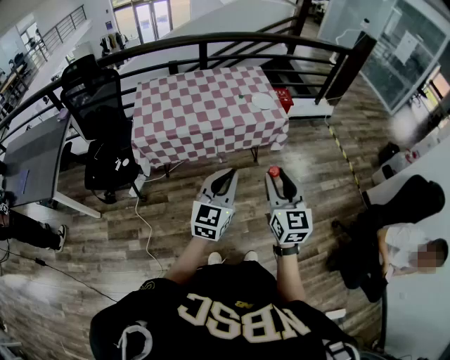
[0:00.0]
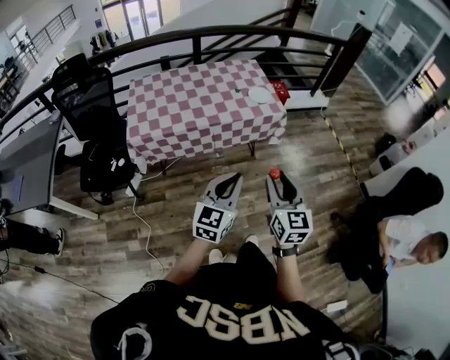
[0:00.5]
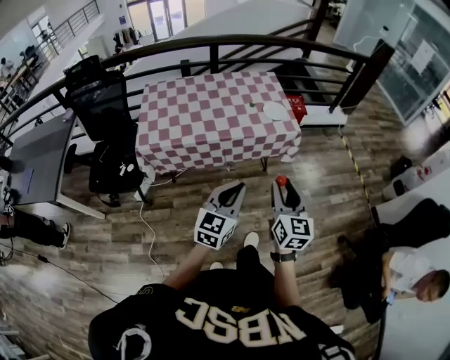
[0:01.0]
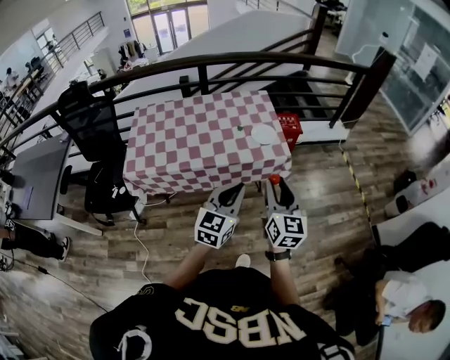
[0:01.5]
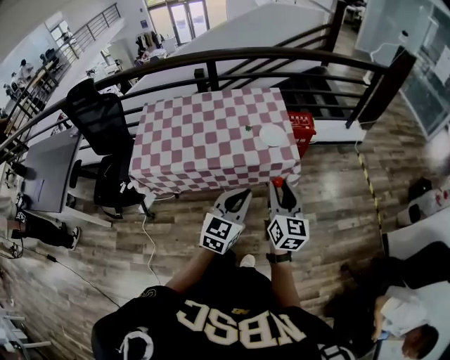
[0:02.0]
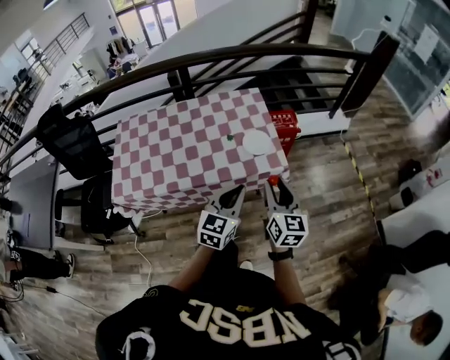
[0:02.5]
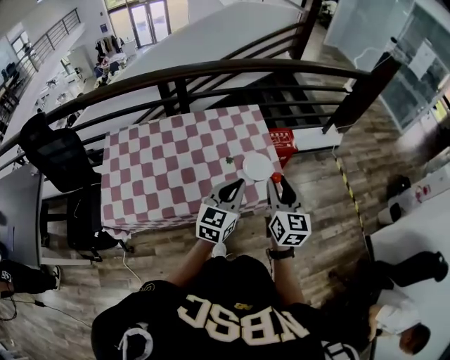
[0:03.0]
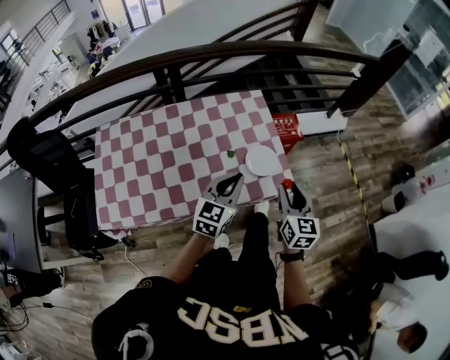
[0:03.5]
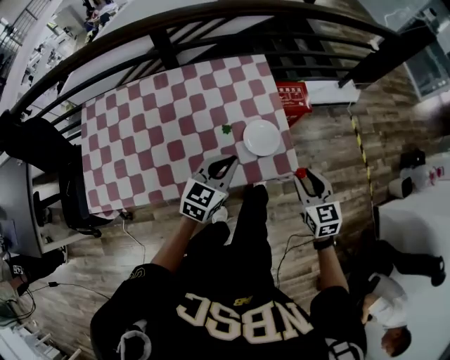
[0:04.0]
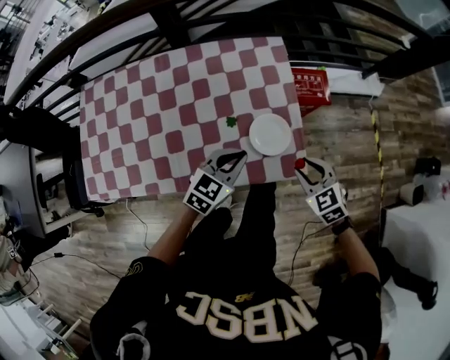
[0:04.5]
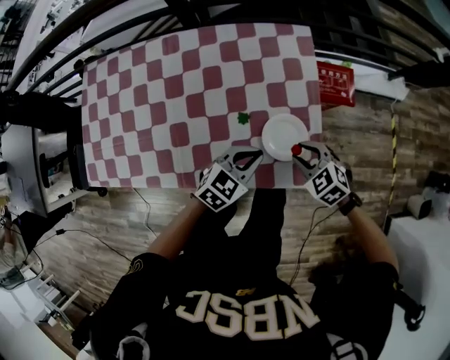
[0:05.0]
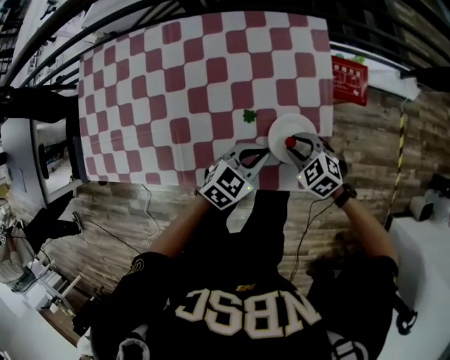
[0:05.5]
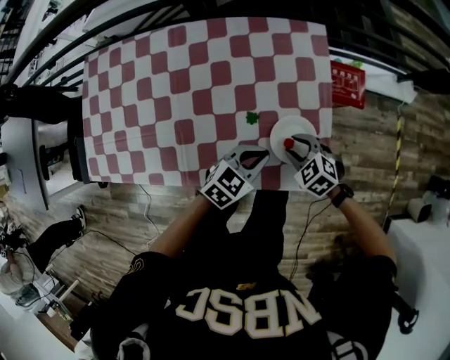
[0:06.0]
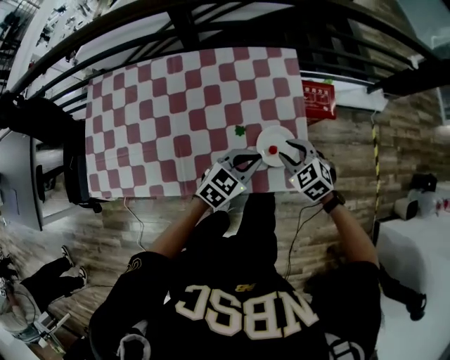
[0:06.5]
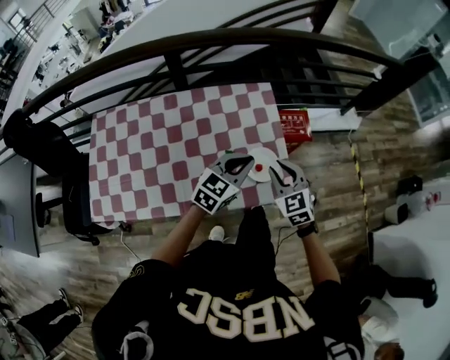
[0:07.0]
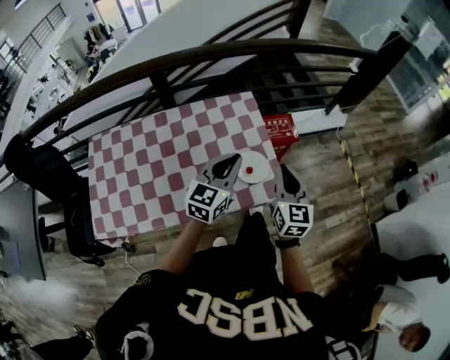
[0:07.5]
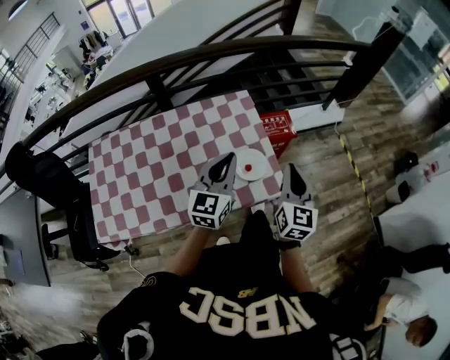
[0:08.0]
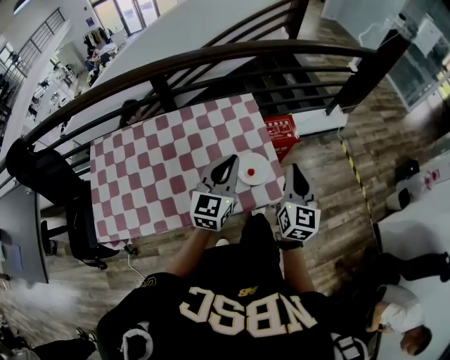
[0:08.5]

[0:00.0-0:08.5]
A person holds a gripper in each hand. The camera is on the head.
0:00.0 to 0:02.0: The left gripper heads forward and to the right, covering about 30 cm. The right gripper heads forward, covering some 30 cm.
0:02.0 to 0:04.0: Both grippers travel together forward and downward, roughly 35 cm. The right gripper rotates about 30 degrees.
0:04.0 to 0:06.5: The left gripper shifts some 10 cm downward and forward. The right gripper shifts approximately 20 cm forward, downward and to the left, and rotates roughly 40 degrees.
0:06.5 to 0:08.5: The right gripper moves upward and to the right, about 25 cm, angles its fingers upward, by approximately 50 degrees, and closes; the left gripper heads upward, covering approximately 20 cm, and rotates about 30 degrees.

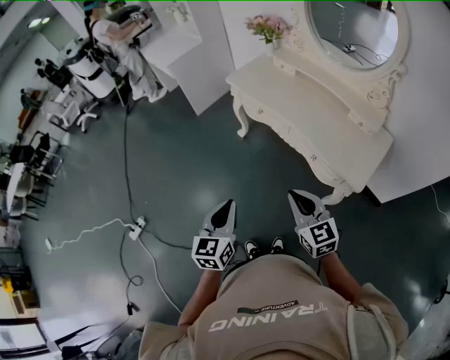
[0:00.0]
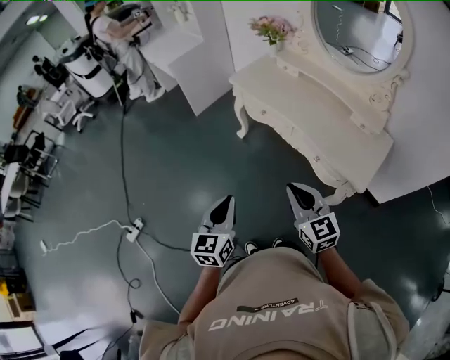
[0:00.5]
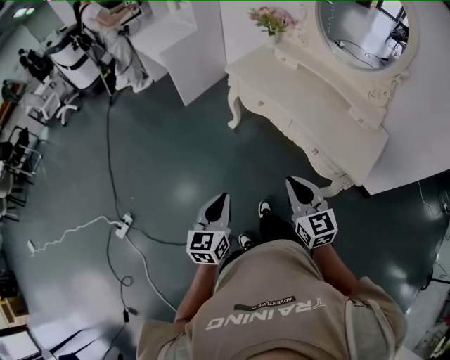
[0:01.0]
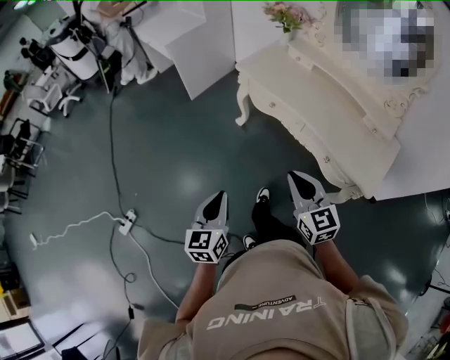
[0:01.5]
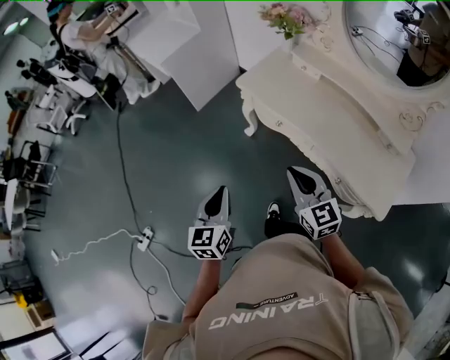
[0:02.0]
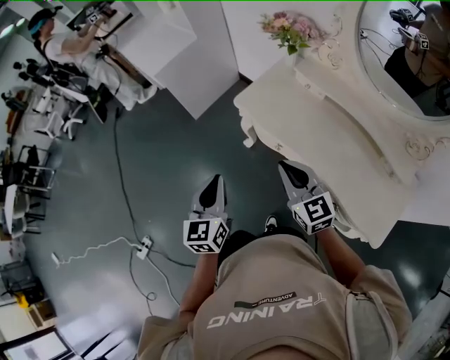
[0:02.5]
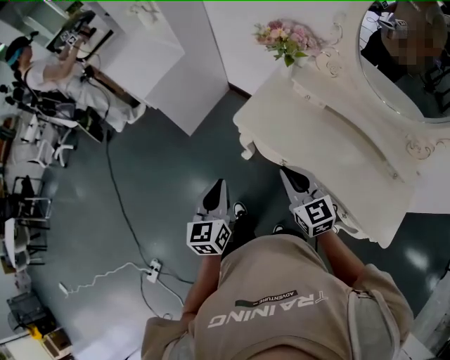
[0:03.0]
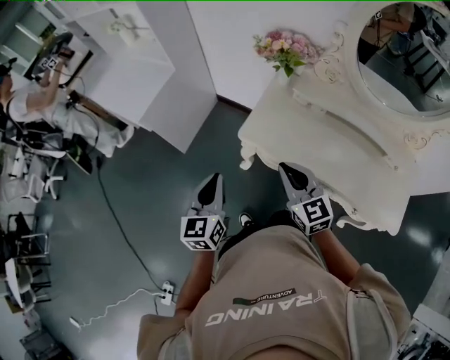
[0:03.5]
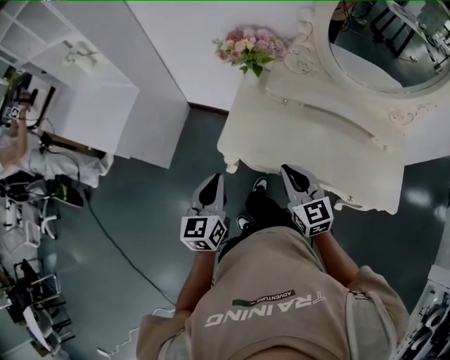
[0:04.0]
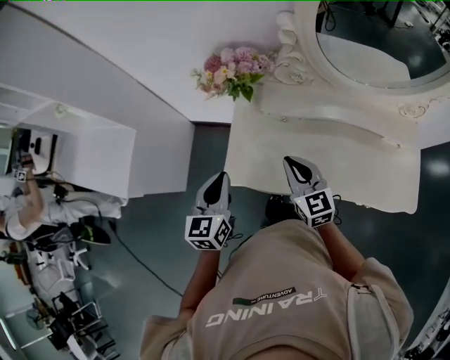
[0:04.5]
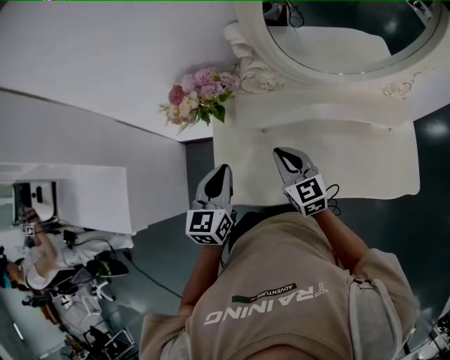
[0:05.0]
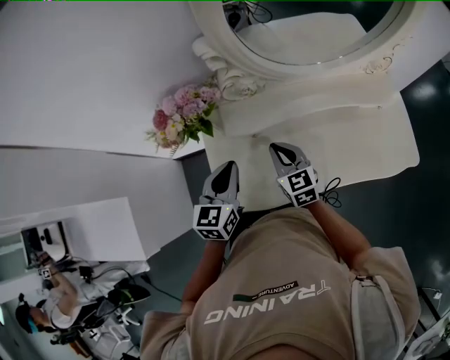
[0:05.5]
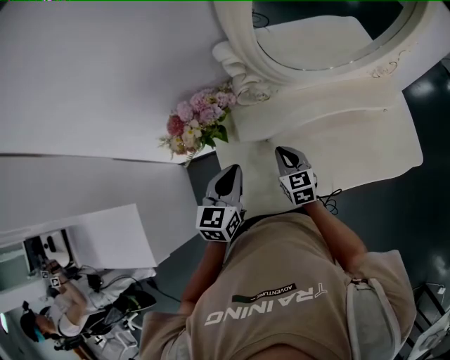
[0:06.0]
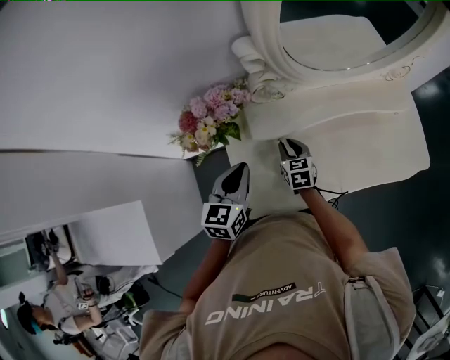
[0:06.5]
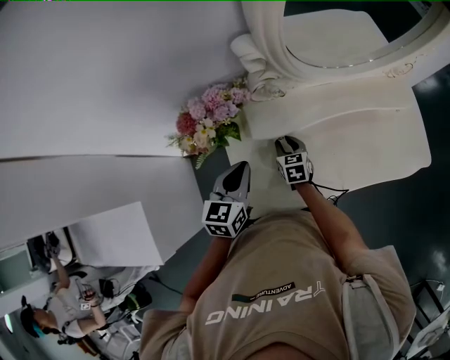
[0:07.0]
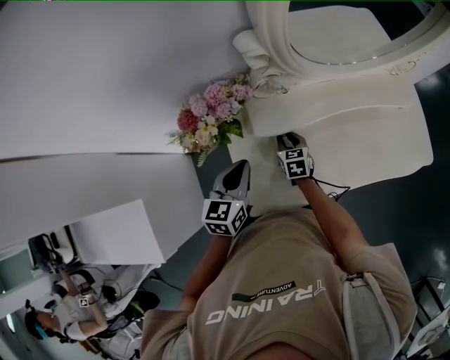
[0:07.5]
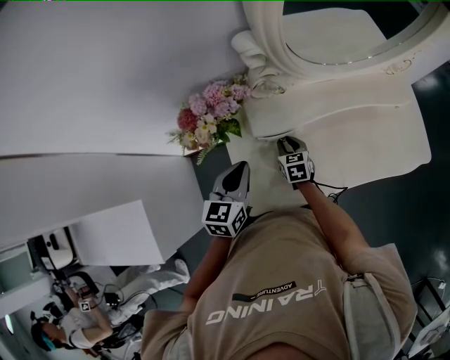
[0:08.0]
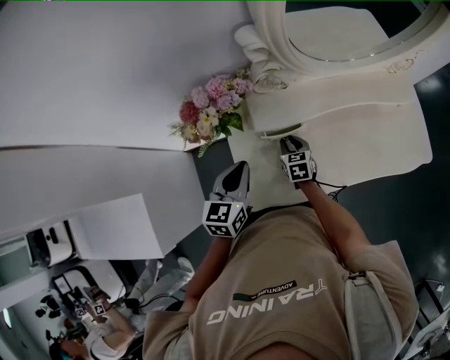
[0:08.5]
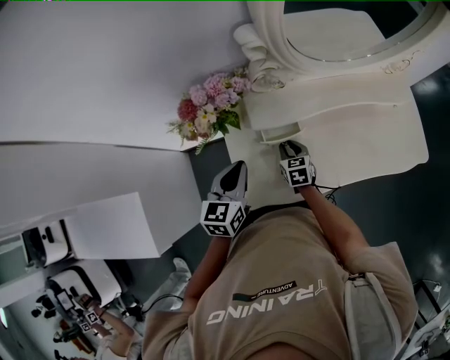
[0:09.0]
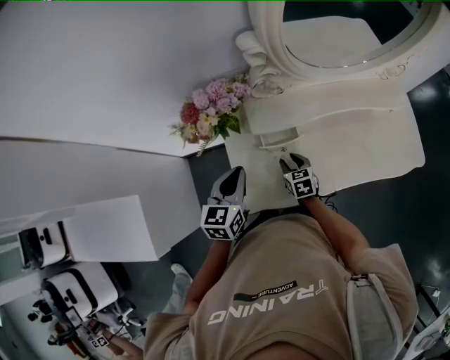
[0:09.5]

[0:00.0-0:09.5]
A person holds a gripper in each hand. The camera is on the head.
0:00.0 to 0:02.0: The grippers both shift forward by roughly 25 cm.
0:02.0 to 0:04.0: The left gripper changes place by roughly 40 cm, and rotates some 30 degrees. The right gripper moves some 30 cm, and rotates roughly 30 degrees.
0:04.0 to 0:05.5: The left gripper shifts by some 30 cm, and turns by some 40 degrees; the right gripper moves about 25 cm, and rotates approximately 30 degrees.
0:05.5 to 0:07.5: The right gripper goes about 15 cm downward and forward, rotates roughly 20 degrees, and opens up; the left gripper is displaced to the left by some 5 cm.
0:07.5 to 0:09.5: The right gripper moves backward, approximately 10 cm.

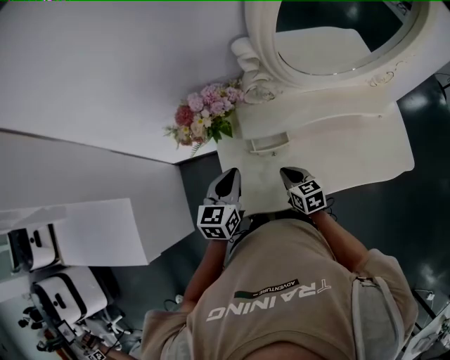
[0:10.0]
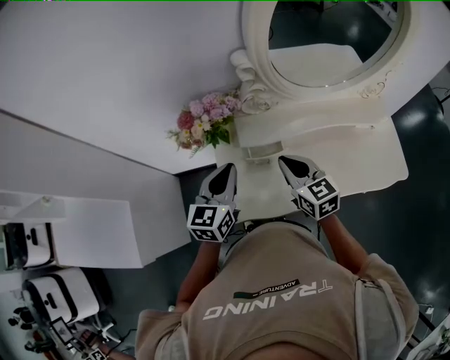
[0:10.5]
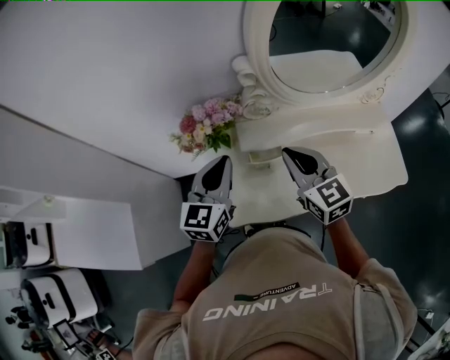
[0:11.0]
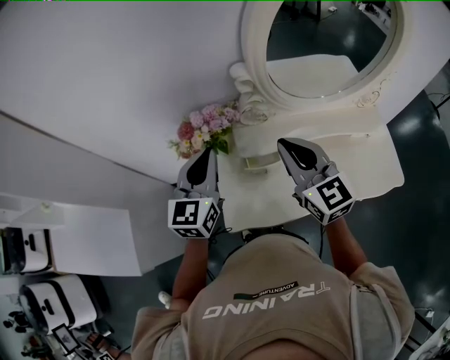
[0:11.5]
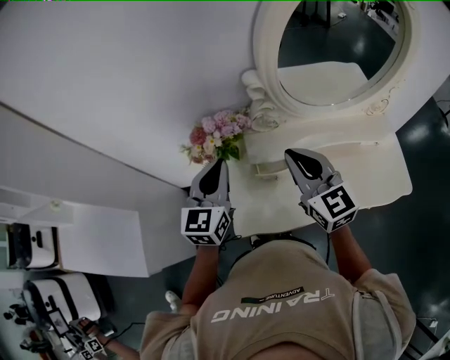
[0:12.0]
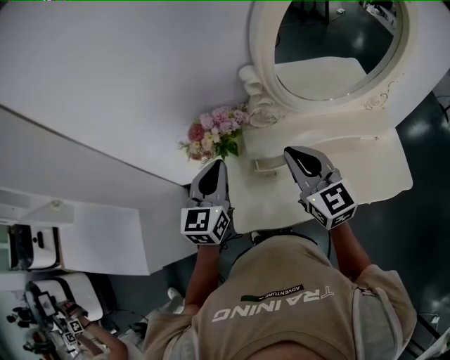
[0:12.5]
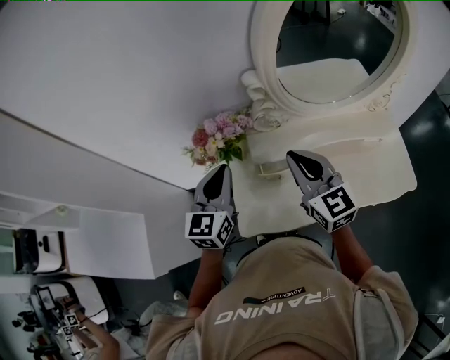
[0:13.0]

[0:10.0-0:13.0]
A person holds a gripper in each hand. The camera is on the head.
0:10.0 to 0:11.5: The left gripper shifts some 20 cm upward, and changes its angle by roughly 20 degrees; the right gripper goes roughly 30 cm upward, and points its fingers some 30 degrees further upward.
0:11.5 to 0:13.0: The grippers move only a little.

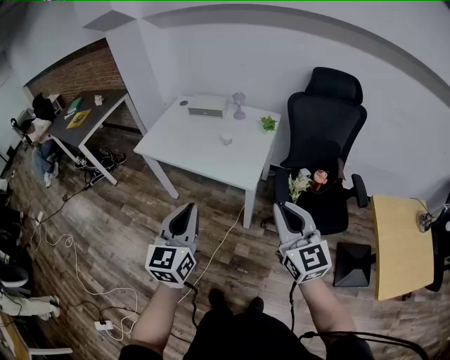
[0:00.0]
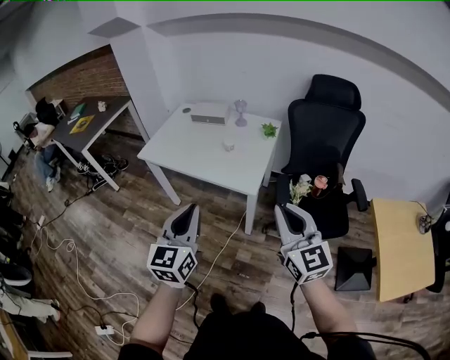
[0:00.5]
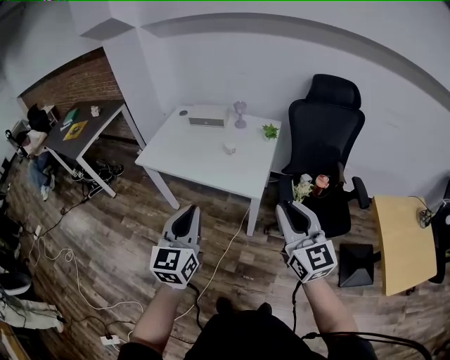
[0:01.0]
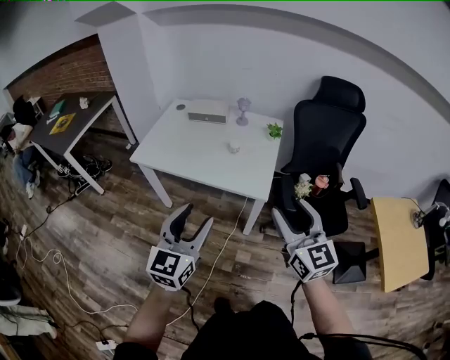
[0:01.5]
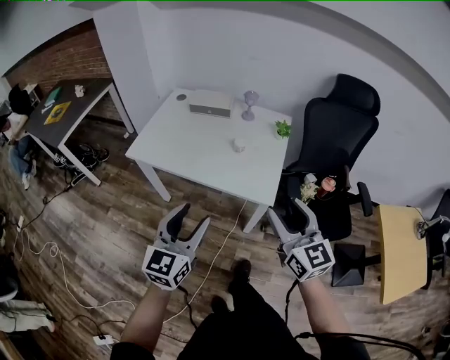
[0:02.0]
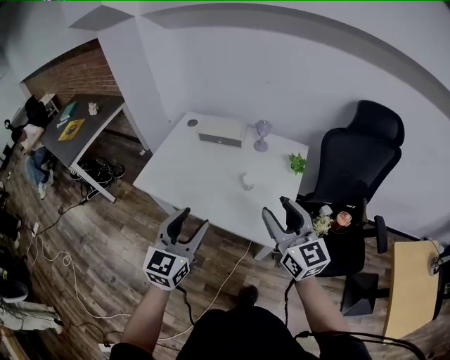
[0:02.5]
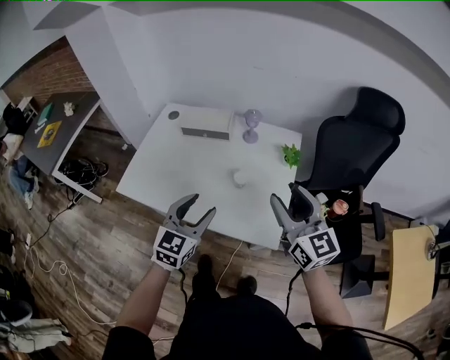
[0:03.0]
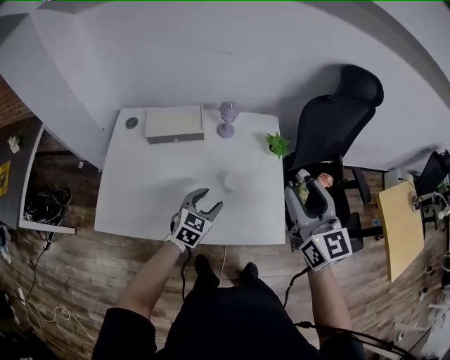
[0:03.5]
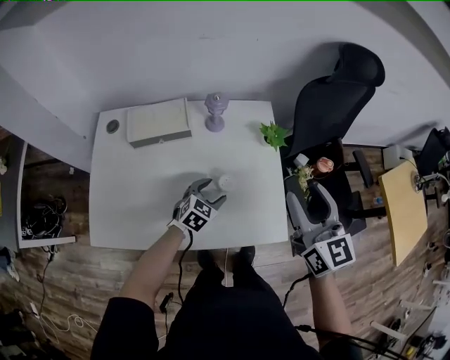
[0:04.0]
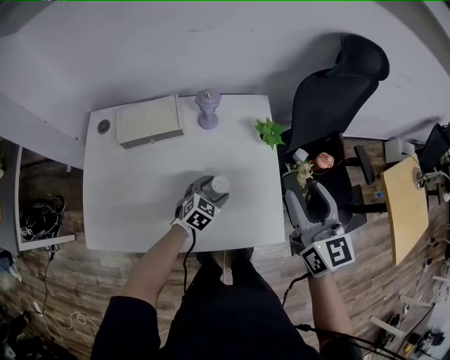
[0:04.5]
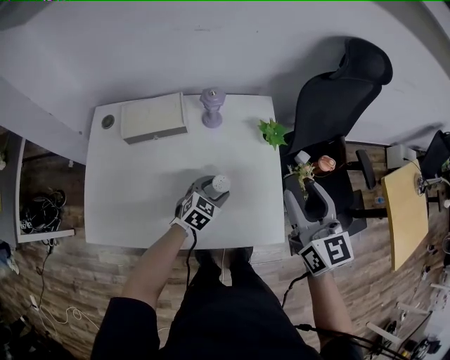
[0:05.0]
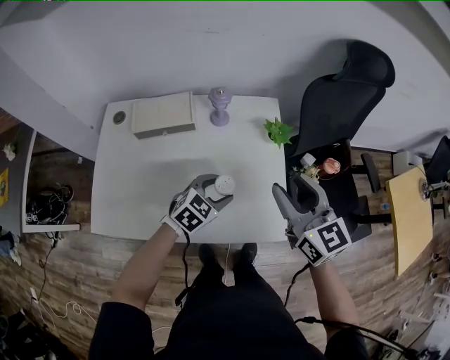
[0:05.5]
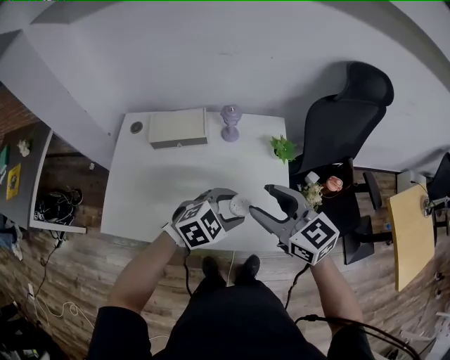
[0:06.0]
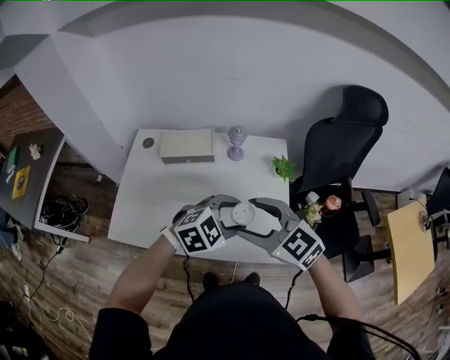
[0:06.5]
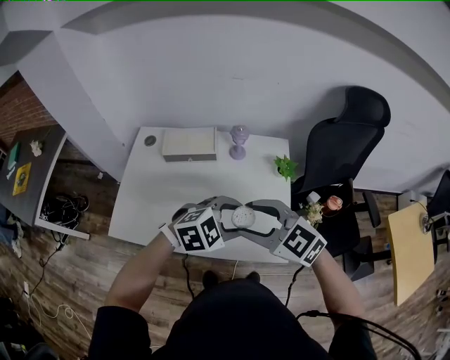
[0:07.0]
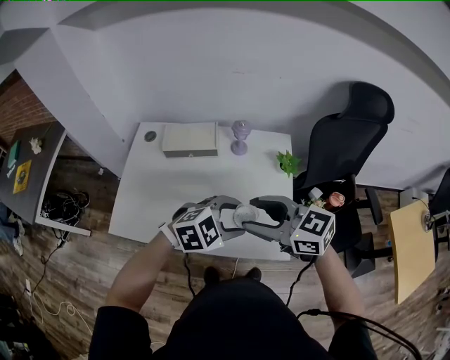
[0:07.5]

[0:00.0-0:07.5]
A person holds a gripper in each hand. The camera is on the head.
0:00.0 to 0:02.0: The left gripper heads forward, to the left and downward, covering some 20 cm, and opens its fingers, while the right gripper travels forward and to the left by approximately 20 cm, and opens.
0:02.0 to 0:04.0: The left gripper shifts by approximately 50 cm, and tips its fingers downward by approximately 40 degrees. The right gripper shifts by about 30 cm, and swivels about 30 degrees.
0:04.0 to 0:05.5: The left gripper moves upward, about 5 cm.
0:05.5 to 0:07.5: The left gripper is displaced upward by about 15 cm, and changes its angle by some 20 degrees. The right gripper ends up roughly 15 cm from where it was, and rotates approximately 40 degrees.
